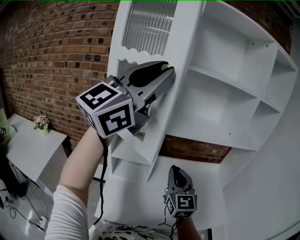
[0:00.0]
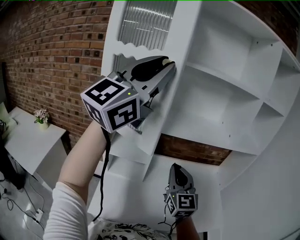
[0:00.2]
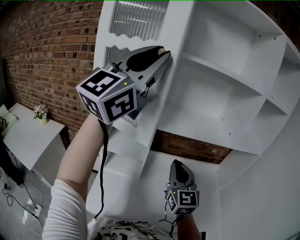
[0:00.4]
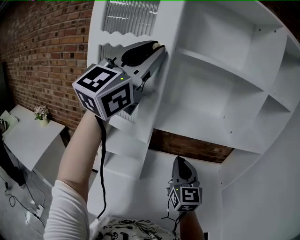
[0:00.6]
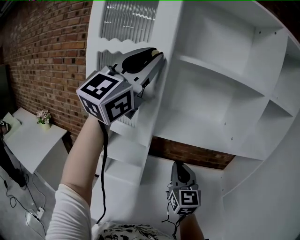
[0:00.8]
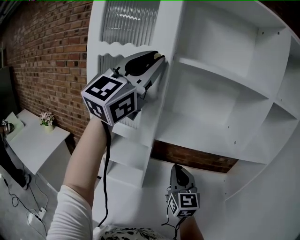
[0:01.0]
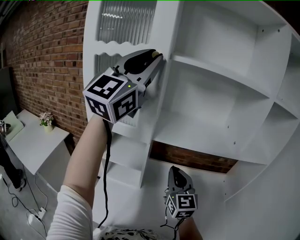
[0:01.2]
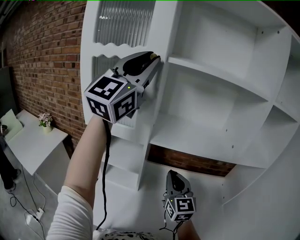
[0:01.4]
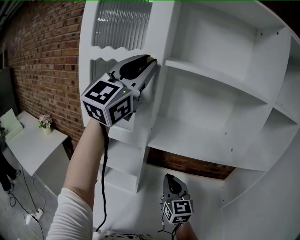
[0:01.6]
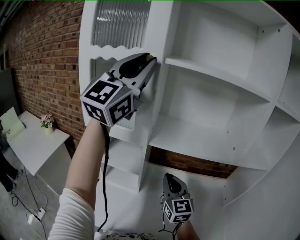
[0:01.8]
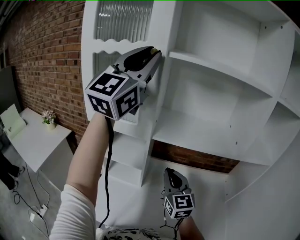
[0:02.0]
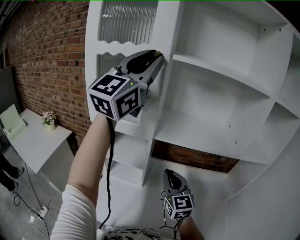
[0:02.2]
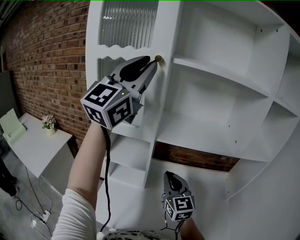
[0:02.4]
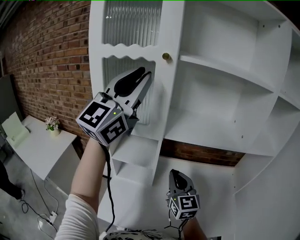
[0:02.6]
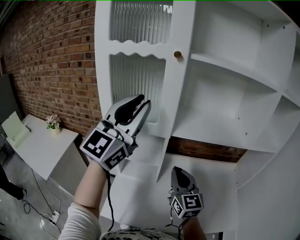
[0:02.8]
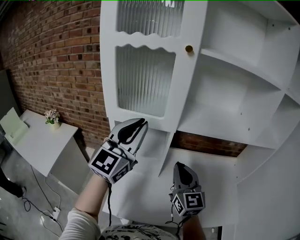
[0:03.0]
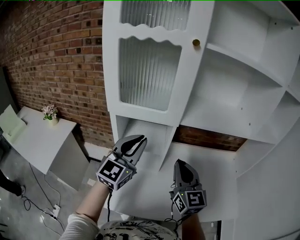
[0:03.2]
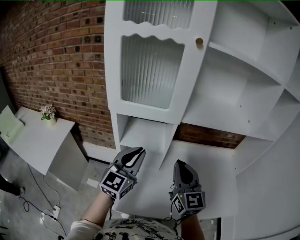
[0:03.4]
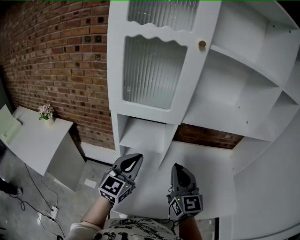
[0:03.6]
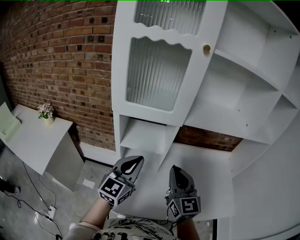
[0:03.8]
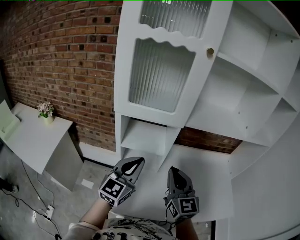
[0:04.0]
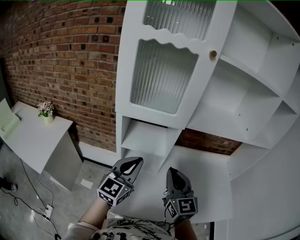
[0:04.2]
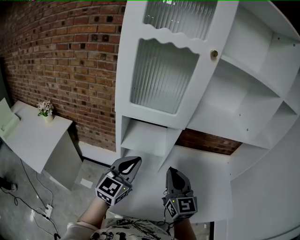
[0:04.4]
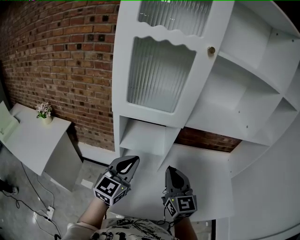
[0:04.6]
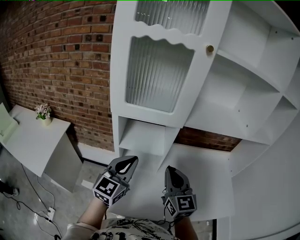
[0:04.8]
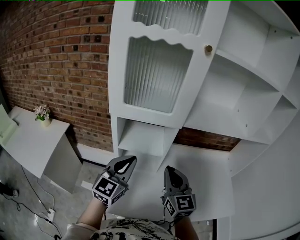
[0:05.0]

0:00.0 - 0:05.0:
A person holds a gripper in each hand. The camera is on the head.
0:00.0 - 0:01.6: The right gripper shifts about 15 cm forward and to the right. The left gripper shifts roughly 15 cm forward, and rotates about 30 degrees.
0:01.6 - 0:03.4: The left gripper is displaced downward by about 40 cm, and rotates some 30 degrees, while the right gripper heads to the left and backward, covering roughly 15 cm.
0:03.4 - 0:05.0: The right gripper ends up about 5 cm from where it was.

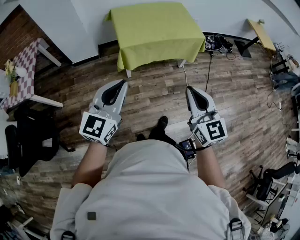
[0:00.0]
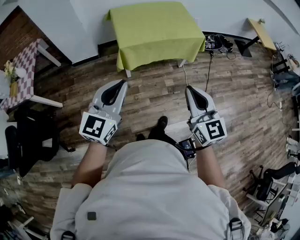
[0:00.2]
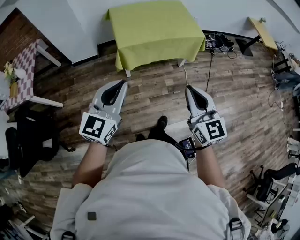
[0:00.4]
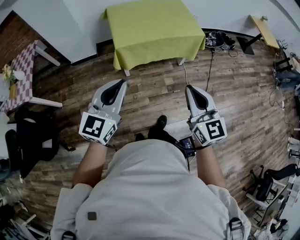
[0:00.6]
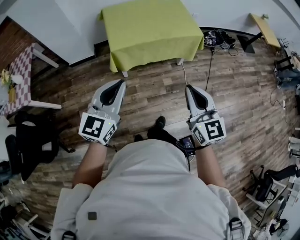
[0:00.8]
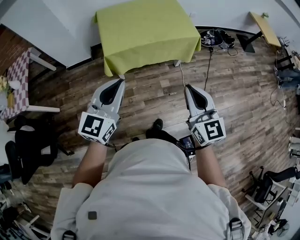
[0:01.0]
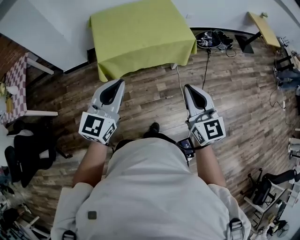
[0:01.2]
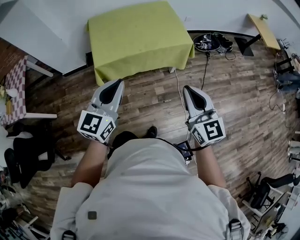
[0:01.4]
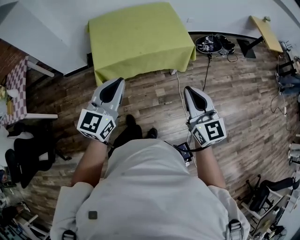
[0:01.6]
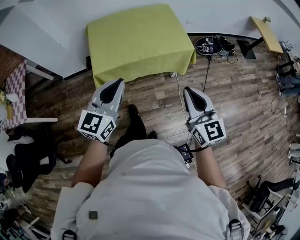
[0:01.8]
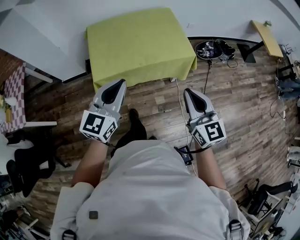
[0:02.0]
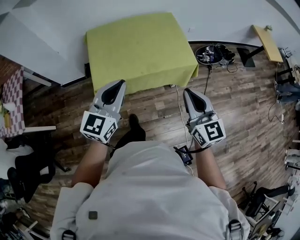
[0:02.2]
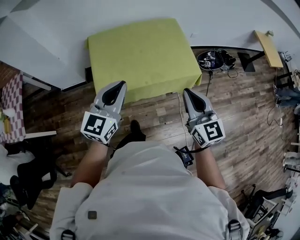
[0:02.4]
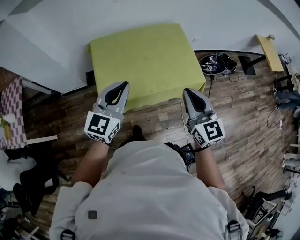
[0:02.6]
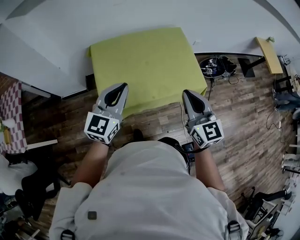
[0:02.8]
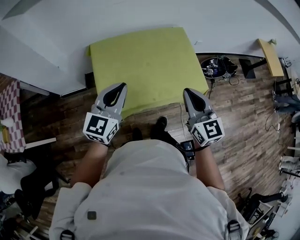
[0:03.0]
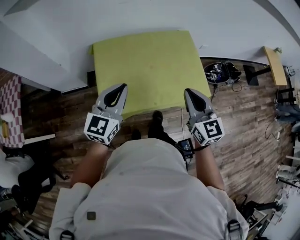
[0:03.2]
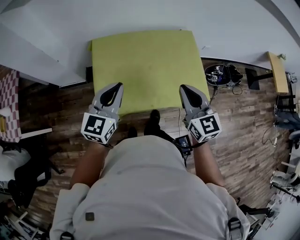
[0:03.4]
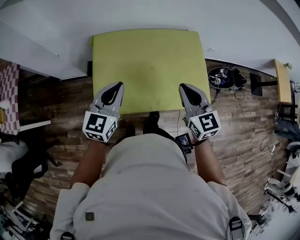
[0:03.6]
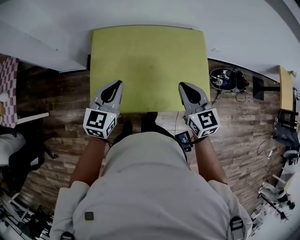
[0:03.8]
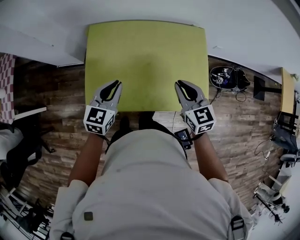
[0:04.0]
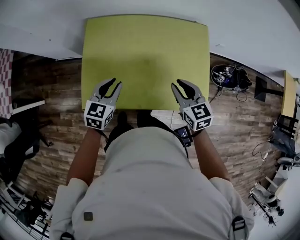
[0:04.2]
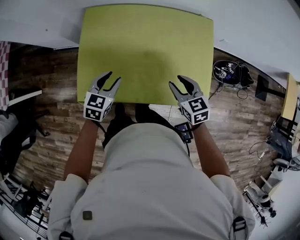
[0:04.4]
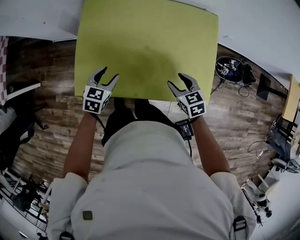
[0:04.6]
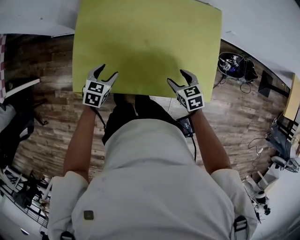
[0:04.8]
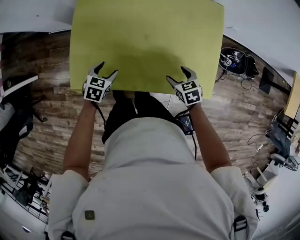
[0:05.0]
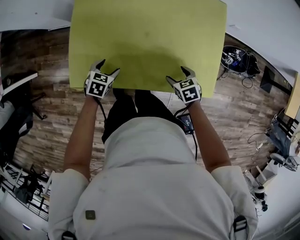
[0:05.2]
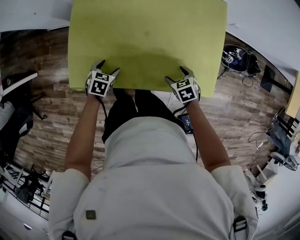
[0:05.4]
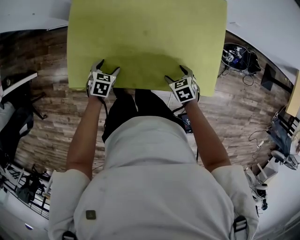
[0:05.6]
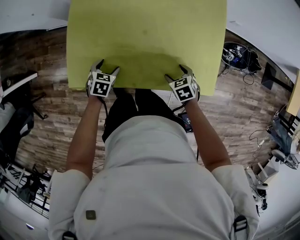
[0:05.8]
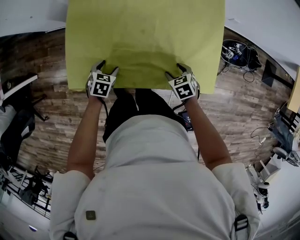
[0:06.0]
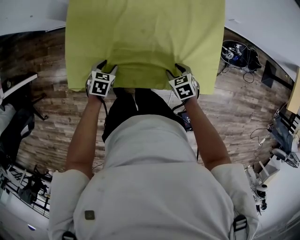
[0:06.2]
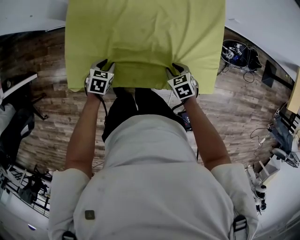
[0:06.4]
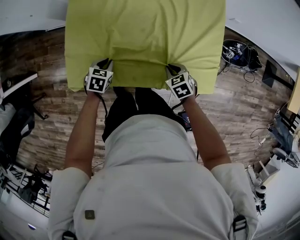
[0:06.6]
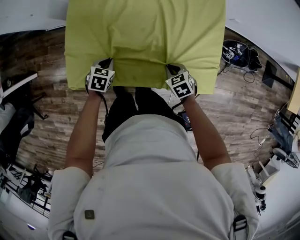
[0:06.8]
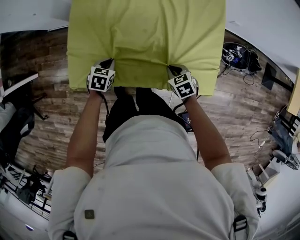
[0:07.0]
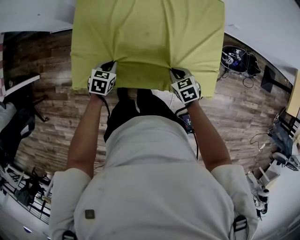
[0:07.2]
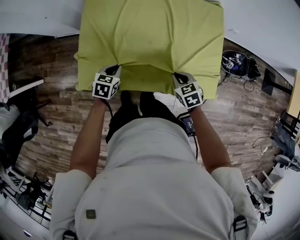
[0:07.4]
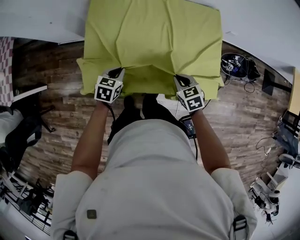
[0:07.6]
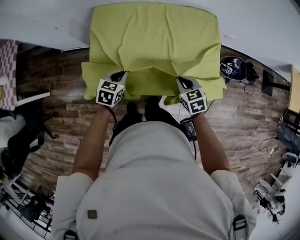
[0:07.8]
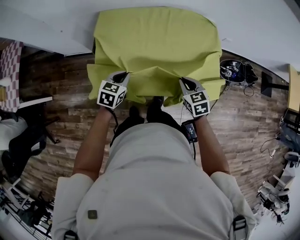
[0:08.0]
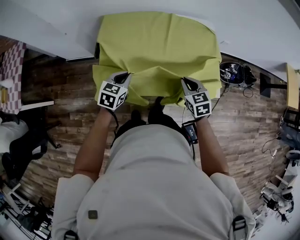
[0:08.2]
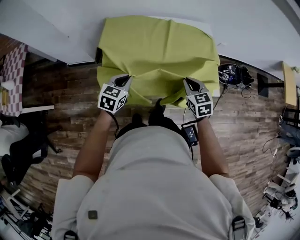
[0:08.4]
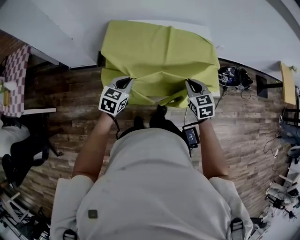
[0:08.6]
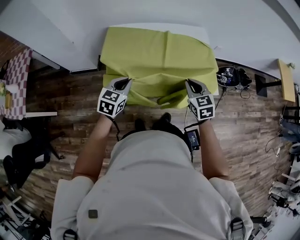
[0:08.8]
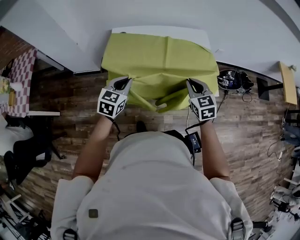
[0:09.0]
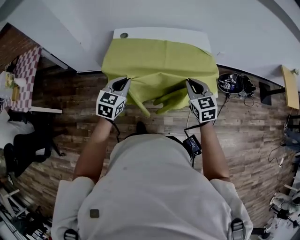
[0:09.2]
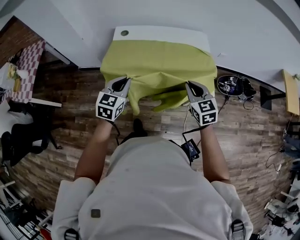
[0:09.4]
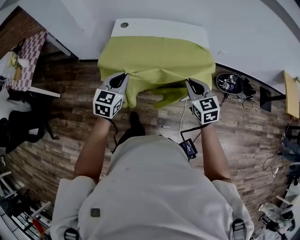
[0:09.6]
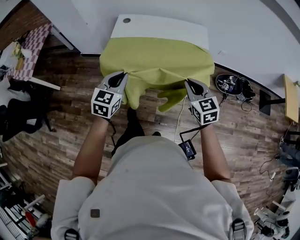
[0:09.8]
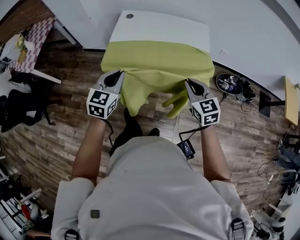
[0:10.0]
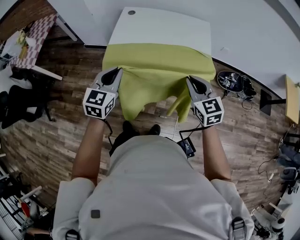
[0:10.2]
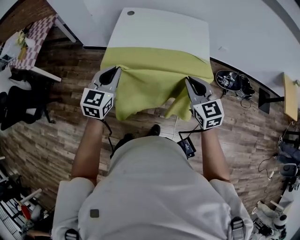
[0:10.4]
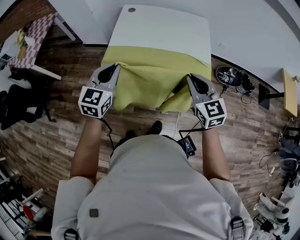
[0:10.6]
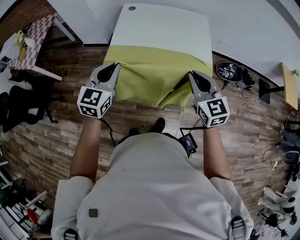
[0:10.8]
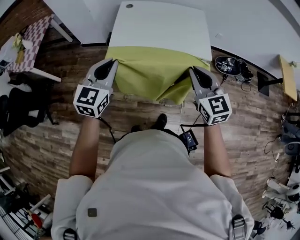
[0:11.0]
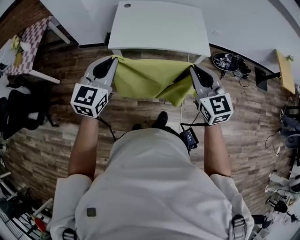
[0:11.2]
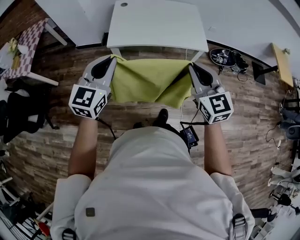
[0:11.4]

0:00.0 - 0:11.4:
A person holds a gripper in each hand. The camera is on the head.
0:00.0 - 0:01.4: The two grippers go roughly 25 cm forward and to the right.
0:01.4 - 0:02.8: Both grippers move forward, some 35 cm.
0:02.8 - 0:04.2: The left gripper shifts approximately 25 cm downward and forward, and turns by some 30 degrees. The right gripper travels forward and downward by some 30 cm, and changes its angle by approximately 30 degrees.
0:04.2 - 0:05.6: Both grippers travel together downward, some 25 cm. The right gripper angles its fingers downward, by some 40 degrees, and opens, while the left gripper tilts its fingers some 30 degrees downward, and opens its fingers.
0:05.6 - 0:07.2: The right gripper closes up; the left gripper closes.
0:07.2 - 0:08.6: The grippers both shift upward by some 20 cm. The right gripper swivels roughly 30 degrees, while the left gripper rotates approximately 30 degrees.
0:08.6 - 0:10.0: The right gripper goes about 25 cm backward, to the right and upward, and rotates roughly 20 degrees. The left gripper goes some 30 cm backward, upward and to the right, and changes its angle by some 20 degrees.
0:10.0 - 0:11.4: Both grippers move backward, to the left and upward, roughly 25 cm.

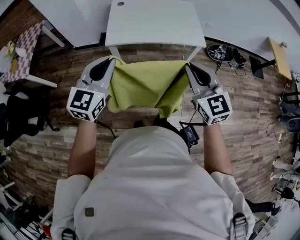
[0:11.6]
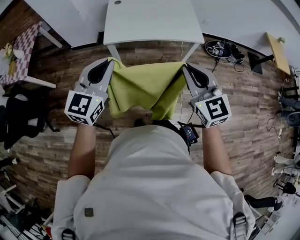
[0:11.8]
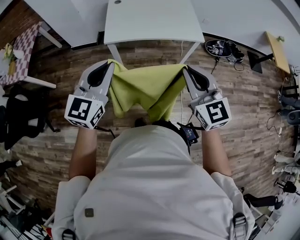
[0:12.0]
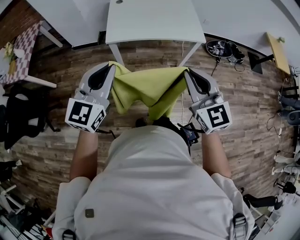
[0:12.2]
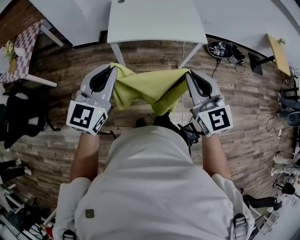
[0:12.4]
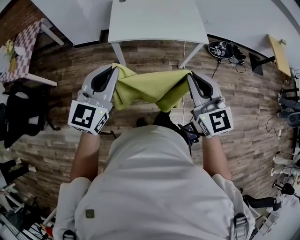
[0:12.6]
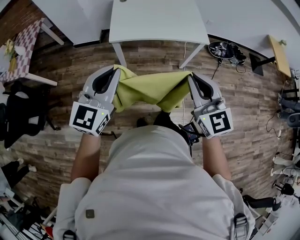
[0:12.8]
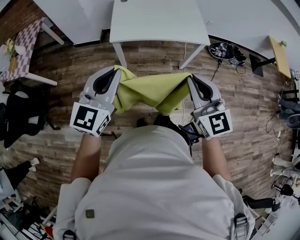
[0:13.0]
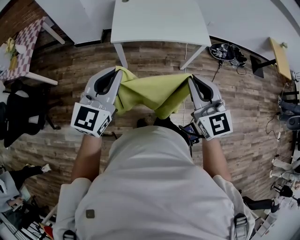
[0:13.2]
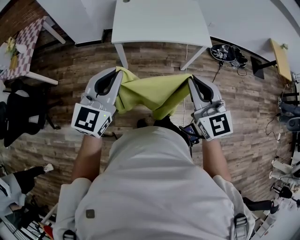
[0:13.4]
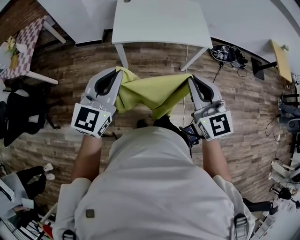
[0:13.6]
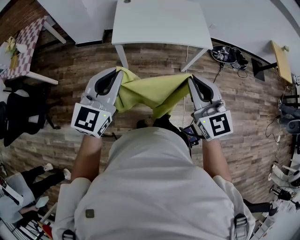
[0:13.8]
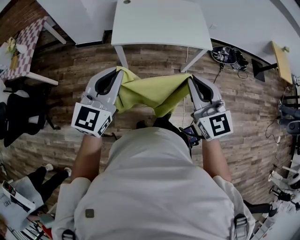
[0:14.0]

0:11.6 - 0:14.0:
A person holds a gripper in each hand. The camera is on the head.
0:11.6 - 0:12.8: Both grippers move backward, some 5 cm.
0:12.8 - 0:14.0: The grippers make only small movements.

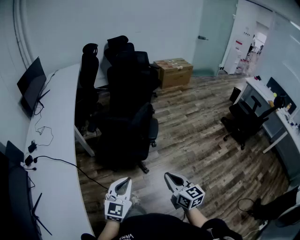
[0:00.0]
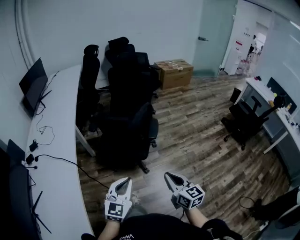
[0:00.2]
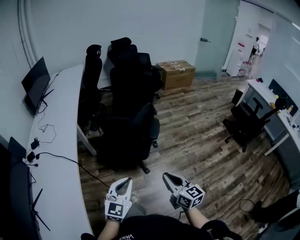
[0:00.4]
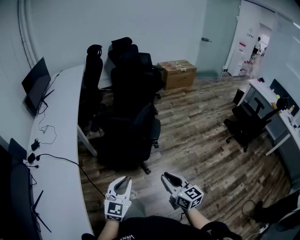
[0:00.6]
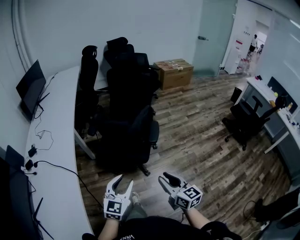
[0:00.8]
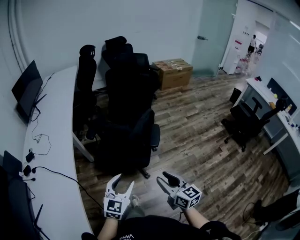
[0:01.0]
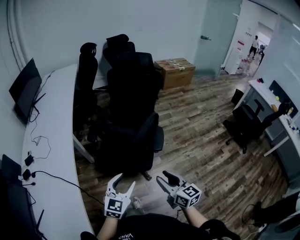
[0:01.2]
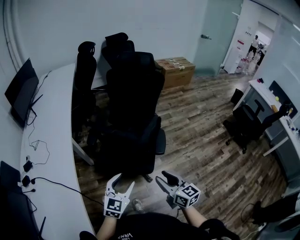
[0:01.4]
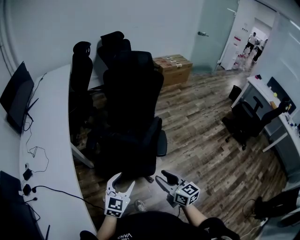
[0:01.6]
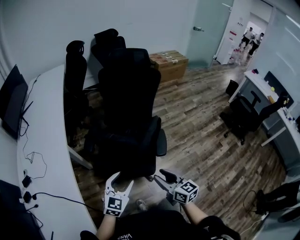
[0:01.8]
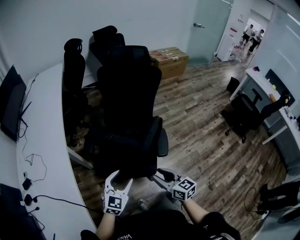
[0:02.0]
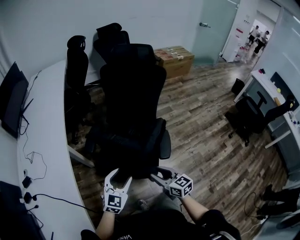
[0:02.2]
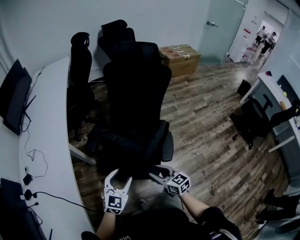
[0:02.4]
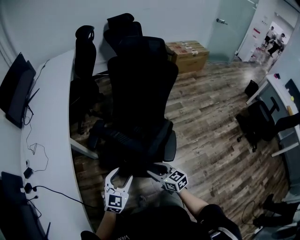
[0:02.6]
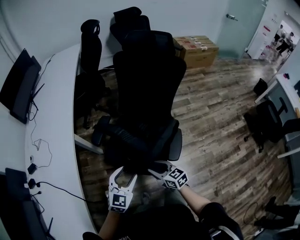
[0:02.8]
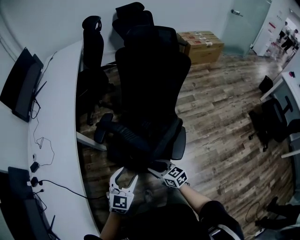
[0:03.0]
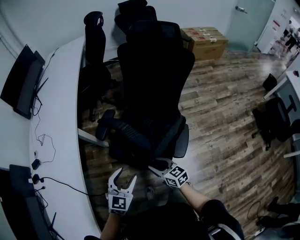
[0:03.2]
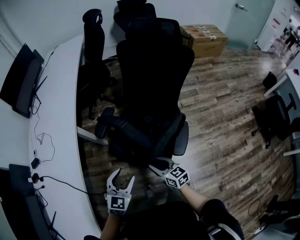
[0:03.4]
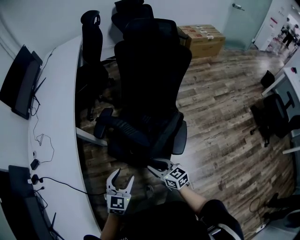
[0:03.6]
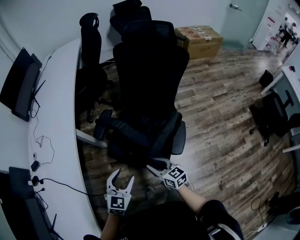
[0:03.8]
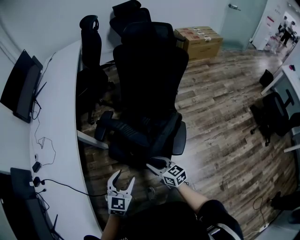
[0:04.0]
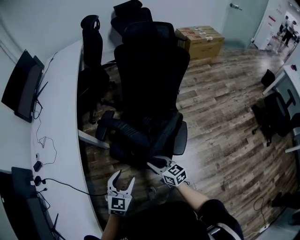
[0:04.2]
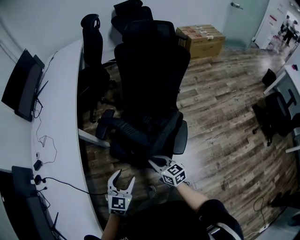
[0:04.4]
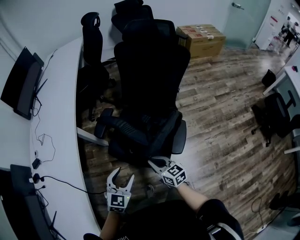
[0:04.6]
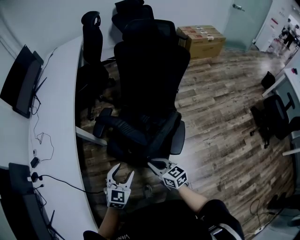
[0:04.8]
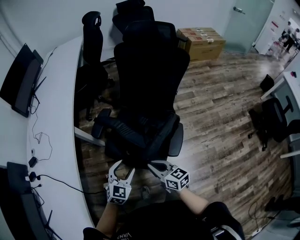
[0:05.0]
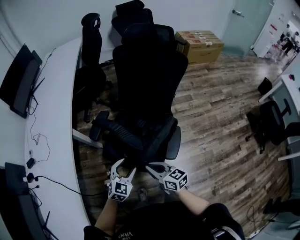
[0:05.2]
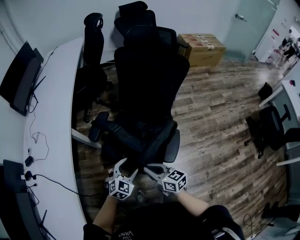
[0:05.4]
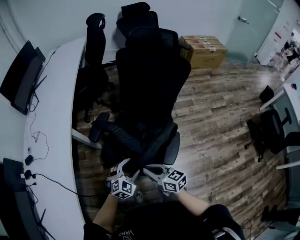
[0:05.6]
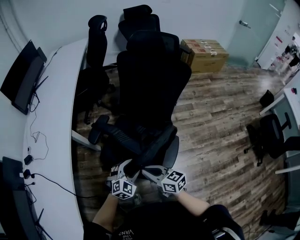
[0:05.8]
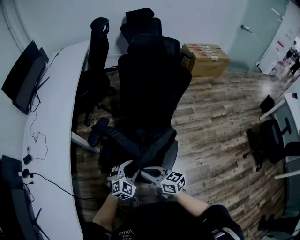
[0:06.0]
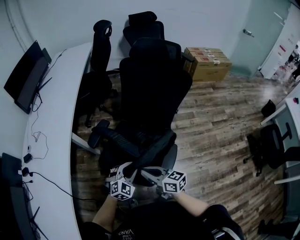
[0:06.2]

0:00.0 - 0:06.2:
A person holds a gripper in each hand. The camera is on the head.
0:00.0 - 0:01.6: The left gripper moves forward, about 25 cm, and opens its fingers, while the right gripper is displaced forward and to the left by about 25 cm, and opens its fingers.
0:01.6 - 0:03.2: The left gripper heads forward and downward, covering about 15 cm, while the right gripper shifts some 25 cm forward and downward, and changes its angle by some 30 degrees.
0:03.2 - 0:04.6: The right gripper closes its fingers.
0:04.6 - 0:06.2: The right gripper is displaced upward and to the right by roughly 10 cm. The left gripper heads to the right and forward, covering about 15 cm, and rotates approximately 20 degrees.
